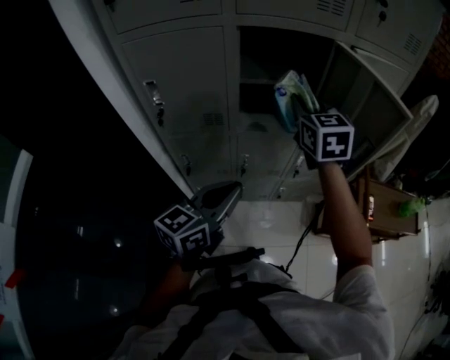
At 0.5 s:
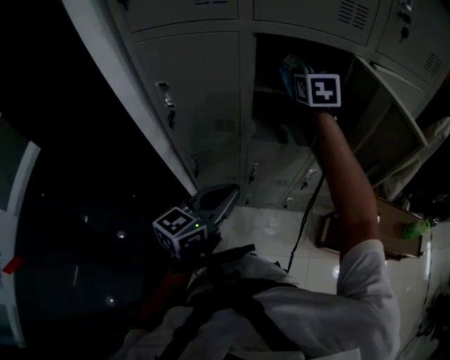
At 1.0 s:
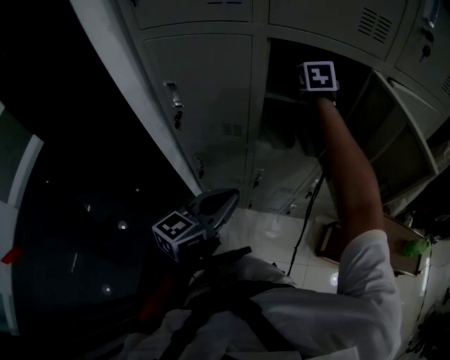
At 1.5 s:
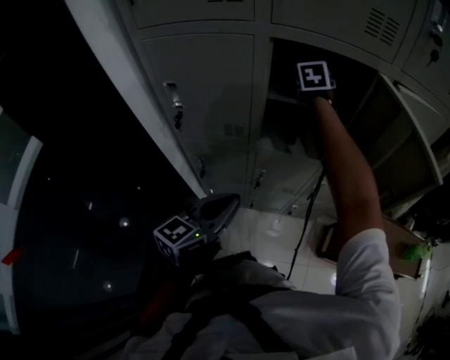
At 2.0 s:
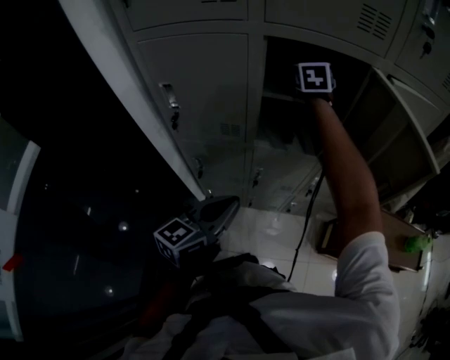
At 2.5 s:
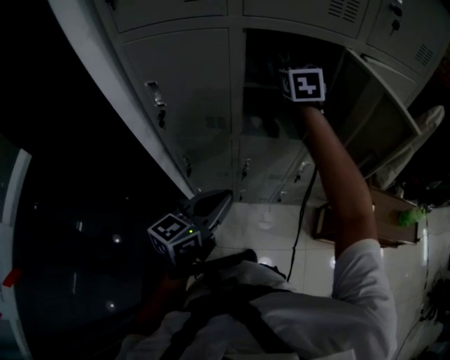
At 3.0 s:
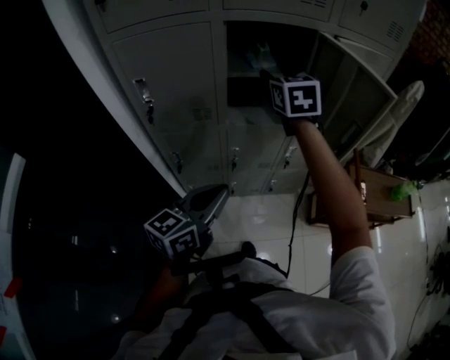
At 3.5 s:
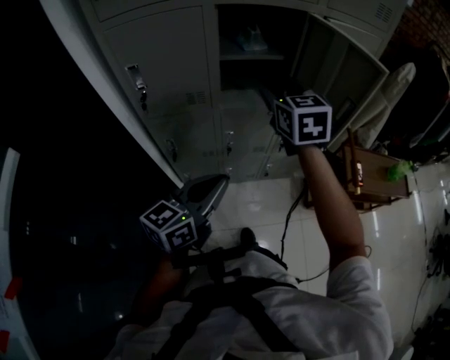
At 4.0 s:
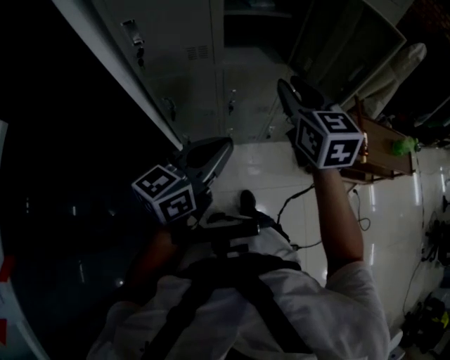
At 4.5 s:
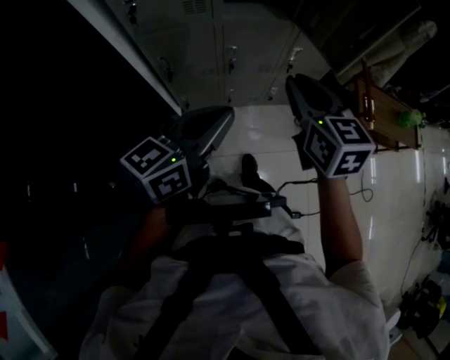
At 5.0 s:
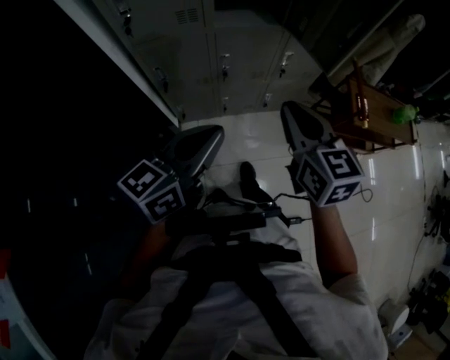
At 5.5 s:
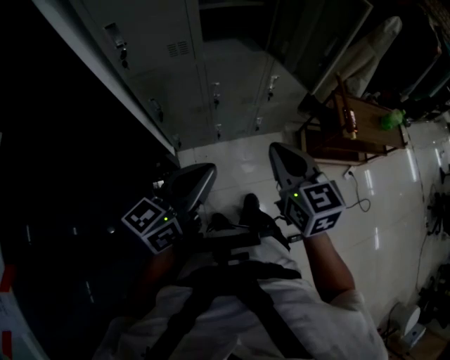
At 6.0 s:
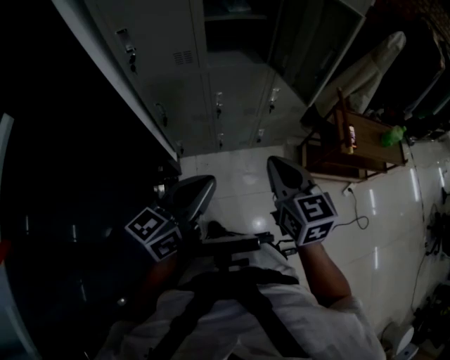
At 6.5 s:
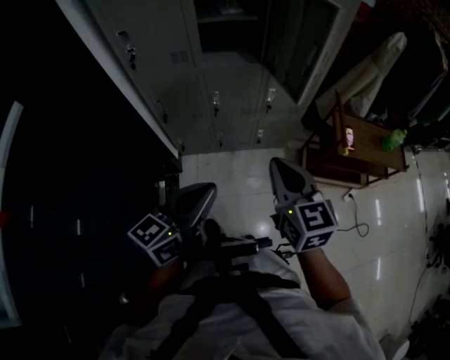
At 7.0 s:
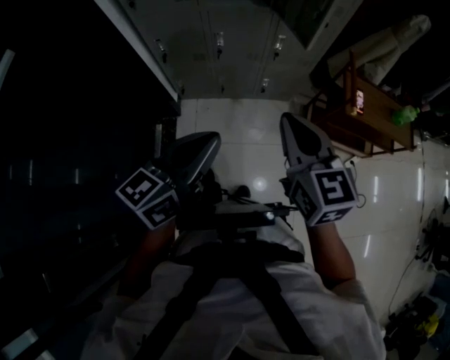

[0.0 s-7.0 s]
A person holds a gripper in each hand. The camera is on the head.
0.0 to 2.0 s: The right gripper shifts roughly 25 cm forward and to the left, and opens its fingers.
2.0 to 3.5 s: The left gripper goes about 10 cm backward. Meanwhile the right gripper goes approximately 25 cm backward.
3.5 to 5.0 s: The right gripper goes about 25 cm backward and downward, and closes, while the left gripper moves backward, approximately 10 cm.
5.0 to 7.0 s: Both grippers travel together to the right and backward, roughly 20 cm.

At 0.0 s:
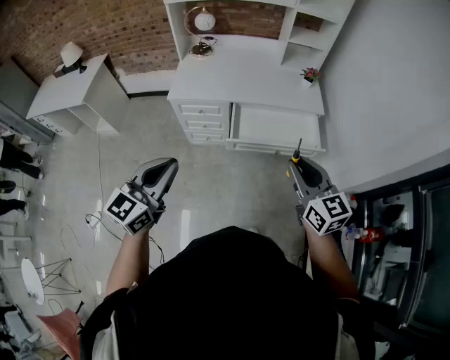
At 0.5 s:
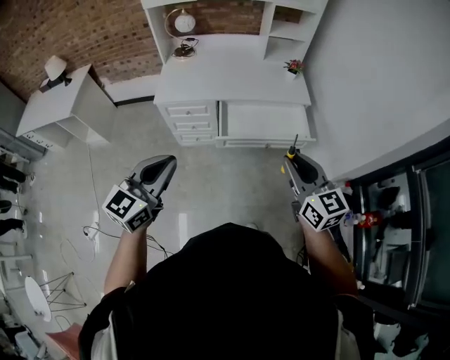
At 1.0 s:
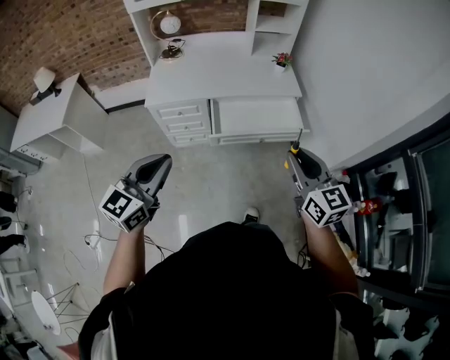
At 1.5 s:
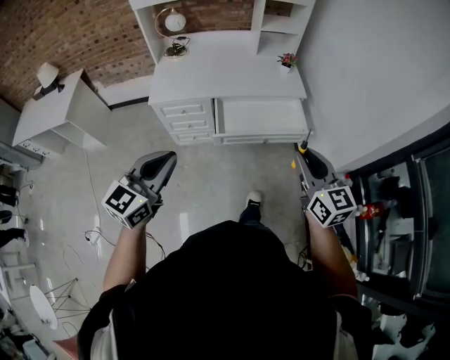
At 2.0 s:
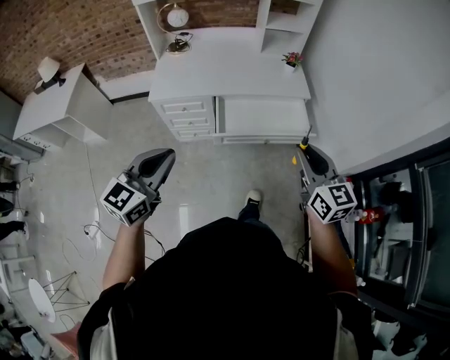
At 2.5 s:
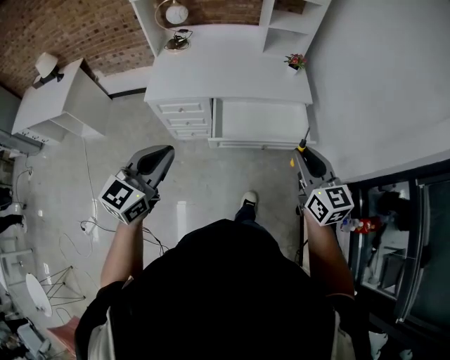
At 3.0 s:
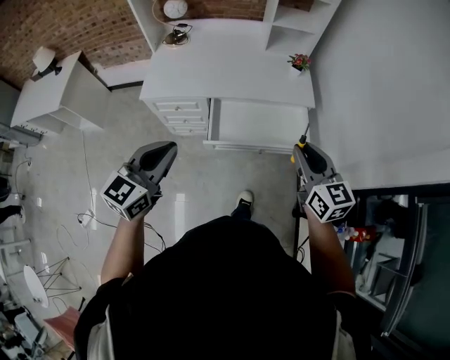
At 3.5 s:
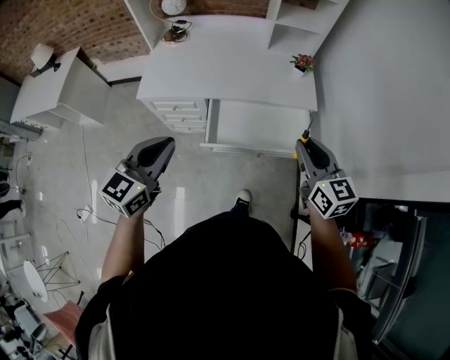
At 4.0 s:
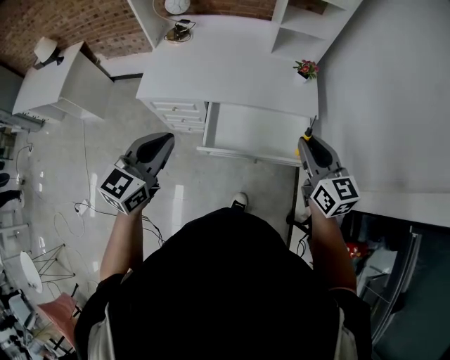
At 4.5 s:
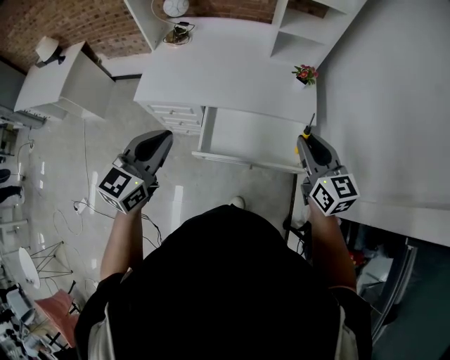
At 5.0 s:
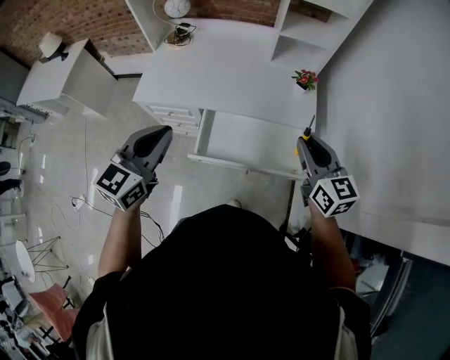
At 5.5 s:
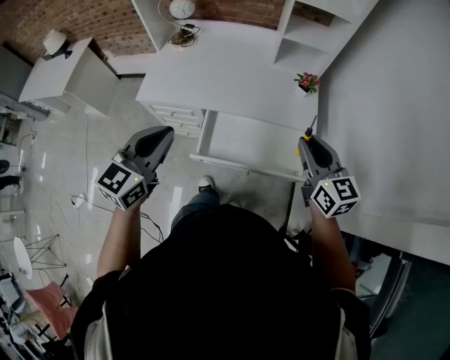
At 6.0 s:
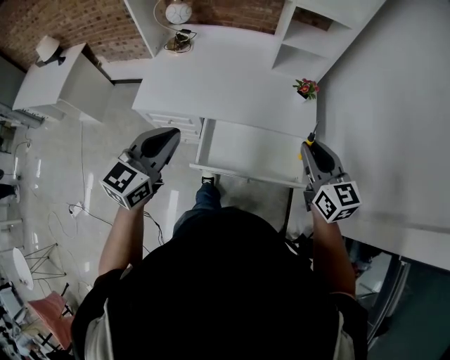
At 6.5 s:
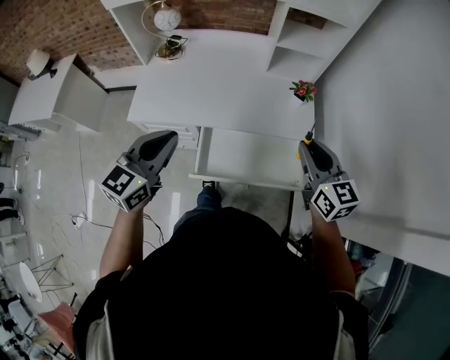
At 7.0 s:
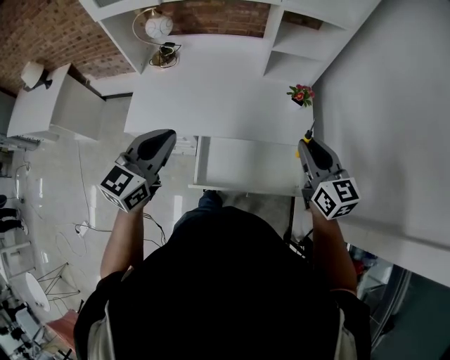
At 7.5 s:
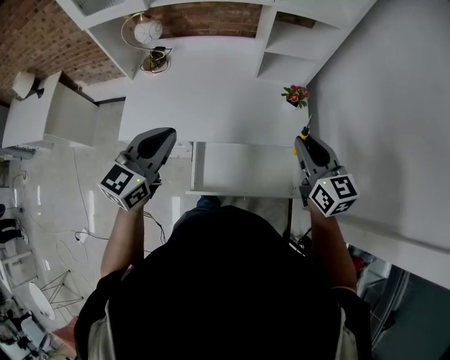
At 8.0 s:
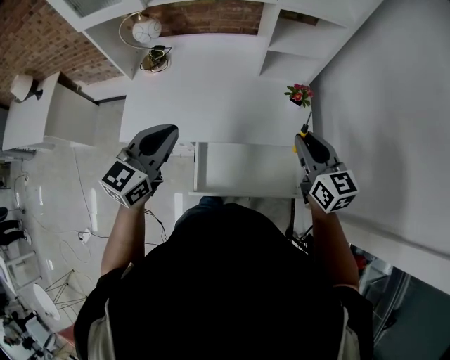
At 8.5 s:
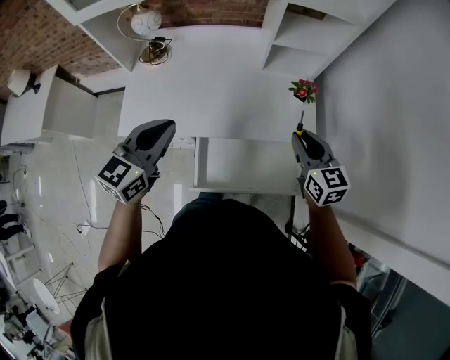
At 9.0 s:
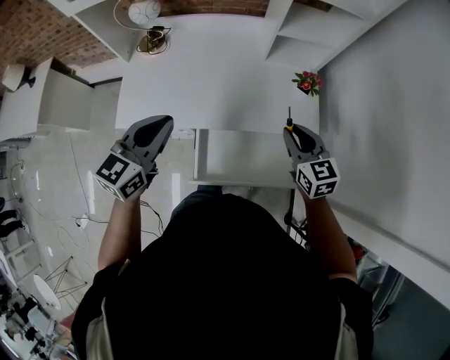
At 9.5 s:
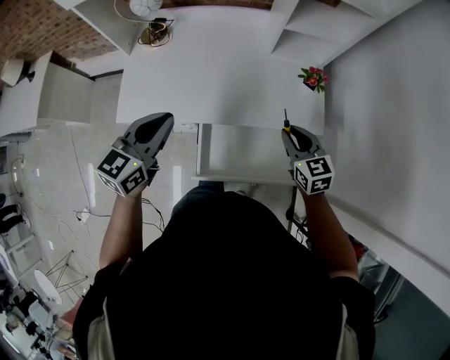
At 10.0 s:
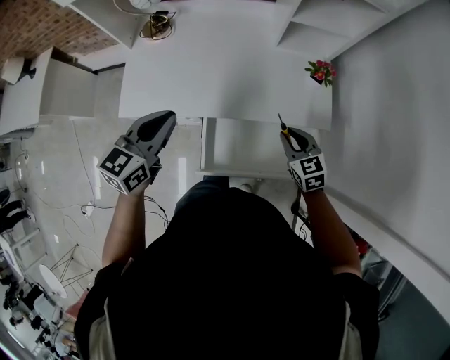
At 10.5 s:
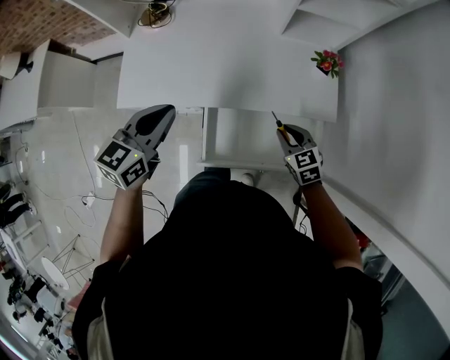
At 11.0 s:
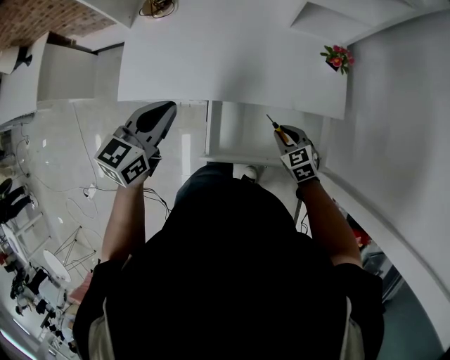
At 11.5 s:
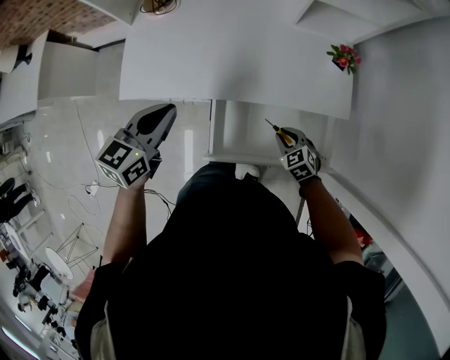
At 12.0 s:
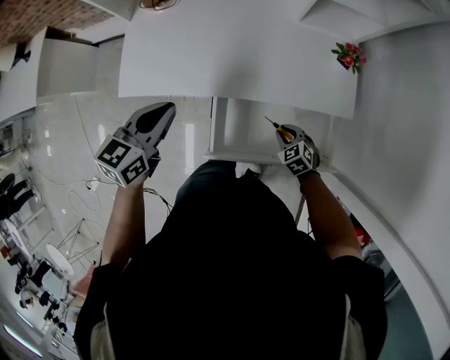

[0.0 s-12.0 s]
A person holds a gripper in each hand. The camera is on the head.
0.0 to 2.0 s: The left gripper travels forward by roughly 5 cm. Meanwhile the right gripper travels to the right by approximately 5 cm.
2.0 to 4.0 s: The grippers both shift forward by approximately 25 cm.
4.0 to 6.0 s: The grippers both shift forward by approximately 10 cm.
6.0 to 8.0 s: The grippers both shift forward by about 15 cm.
8.0 to 10.0 s: The left gripper is displaced downward and to the left by some 10 cm. Meanwhile the right gripper shifts approximately 20 cm downward, and rotates some 30 degrees.
10.0 to 12.0 s: The left gripper travels downward by about 10 cm, while the right gripper goes approximately 20 cm downward, and turns by some 30 degrees.

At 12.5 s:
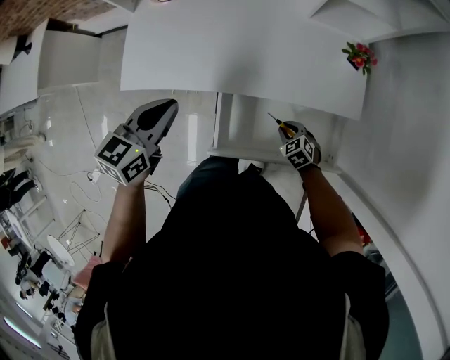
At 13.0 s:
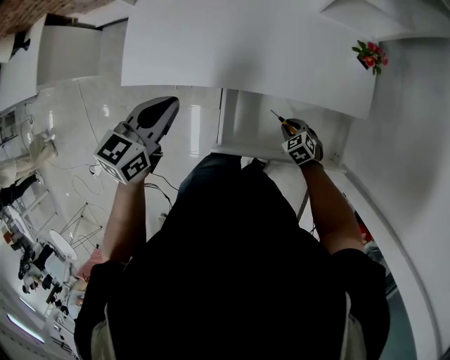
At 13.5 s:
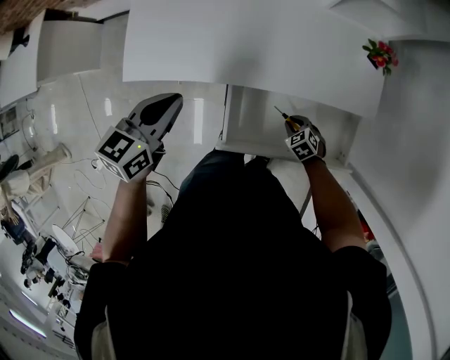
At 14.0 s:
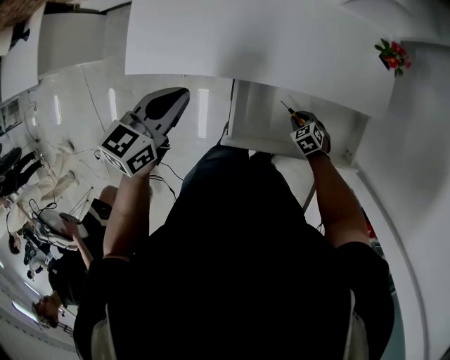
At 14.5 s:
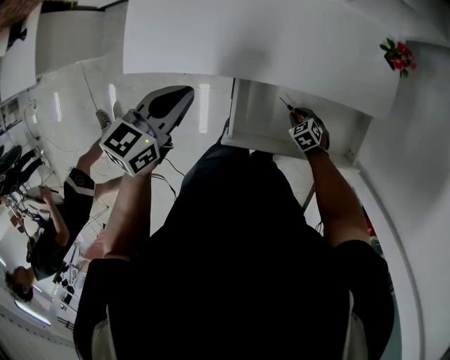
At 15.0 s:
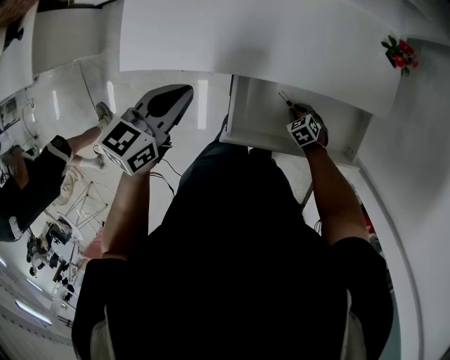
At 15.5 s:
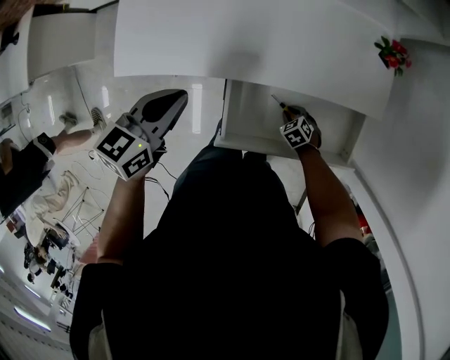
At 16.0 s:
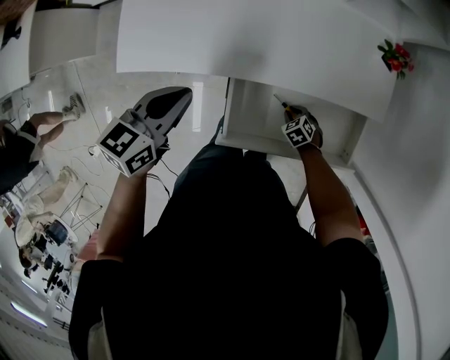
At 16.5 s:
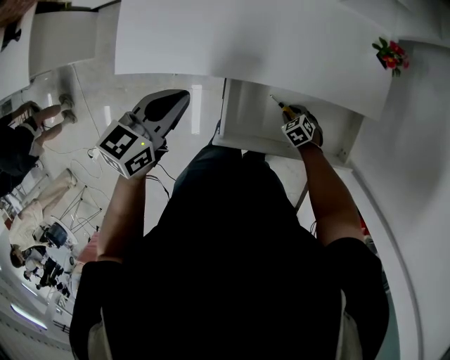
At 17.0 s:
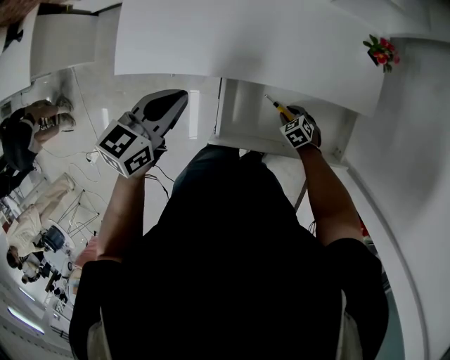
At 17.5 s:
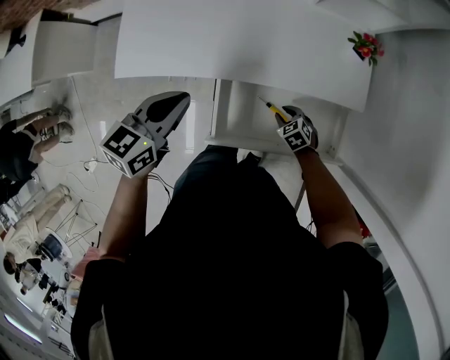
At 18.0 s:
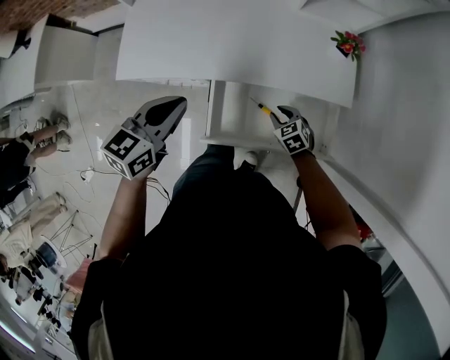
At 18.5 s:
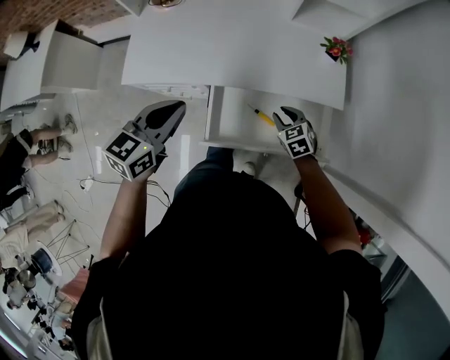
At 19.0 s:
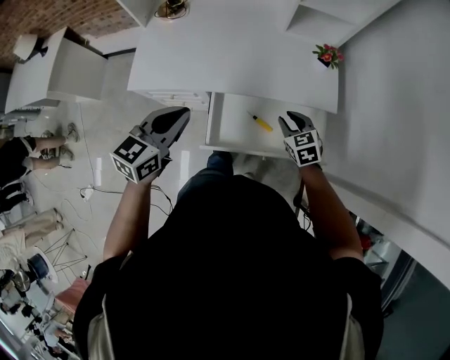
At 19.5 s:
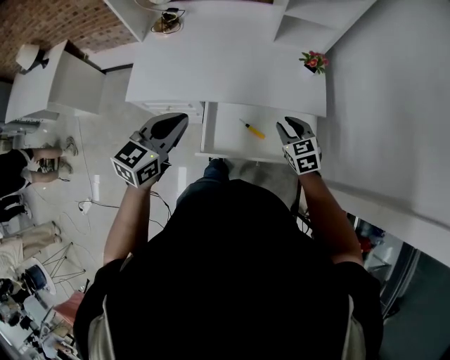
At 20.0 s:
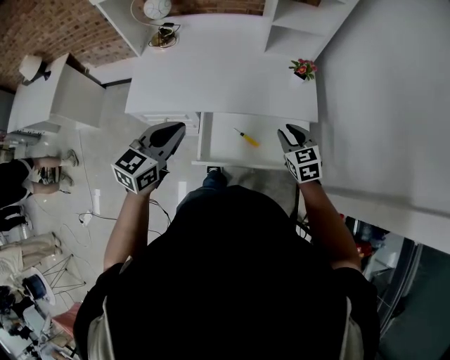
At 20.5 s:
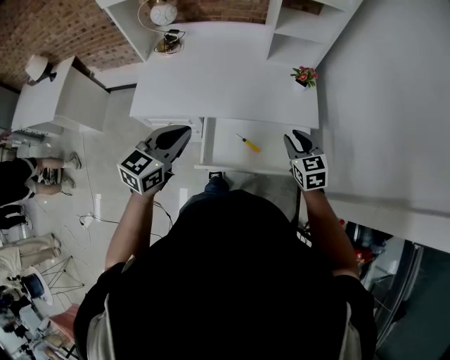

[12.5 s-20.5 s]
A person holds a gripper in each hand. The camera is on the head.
12.5 to 14.5 s: The left gripper shifts some 5 cm downward; the right gripper is displaced downward by about 10 cm.
14.5 to 16.5 s: There are only small adjustments of the grippers.
16.5 to 18.5 s: The right gripper shifts some 25 cm upward, and changes its angle by approximately 30 degrees. Meanwhile the left gripper goes about 15 cm upward and backward.
18.5 to 20.5 s: The left gripper is displaced backward, upward and to the right by roughly 15 cm. The right gripper is displaced upward and to the right by roughly 25 cm, and changes its angle by roughly 20 degrees.
